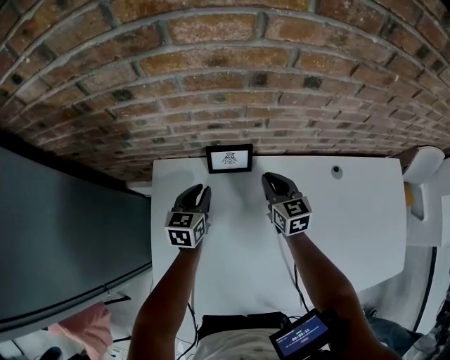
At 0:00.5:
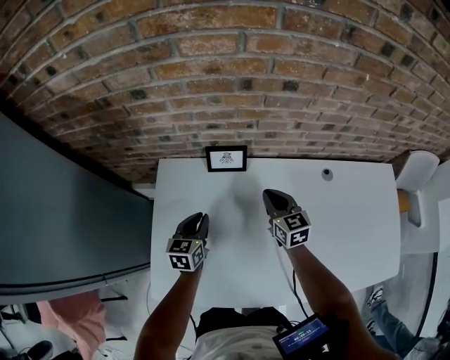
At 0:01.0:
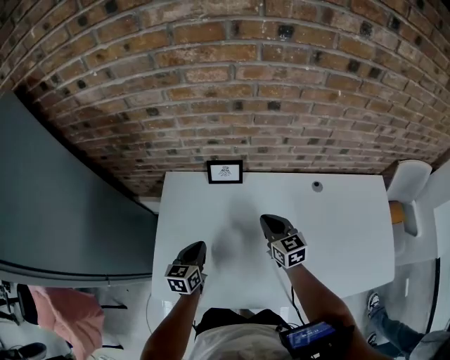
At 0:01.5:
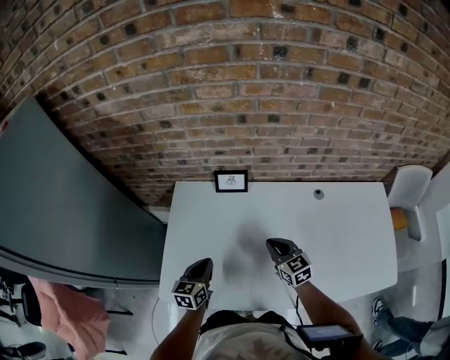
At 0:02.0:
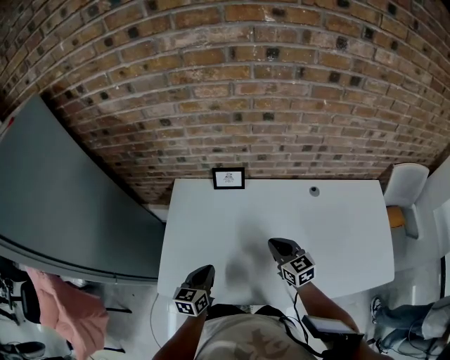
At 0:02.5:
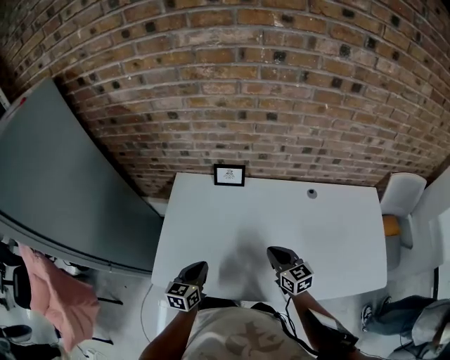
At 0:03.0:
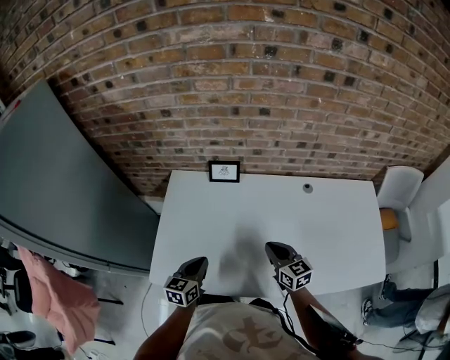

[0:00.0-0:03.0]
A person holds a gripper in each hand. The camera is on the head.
0:00.0 to 0:01.5: Both grippers move backward, roughly 25 cm.
0:01.5 to 0:03.0: The two grippers go roughly 5 cm backward.

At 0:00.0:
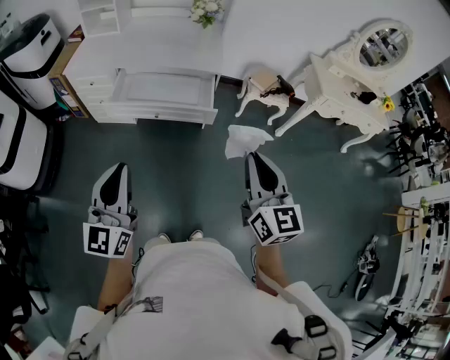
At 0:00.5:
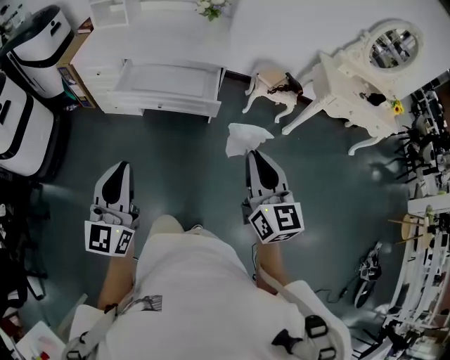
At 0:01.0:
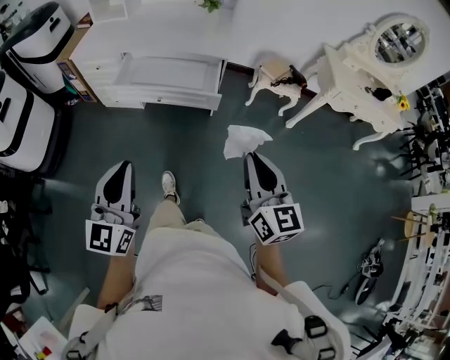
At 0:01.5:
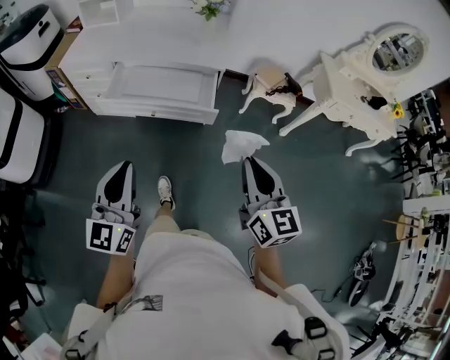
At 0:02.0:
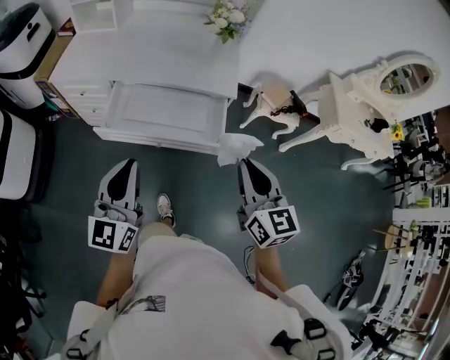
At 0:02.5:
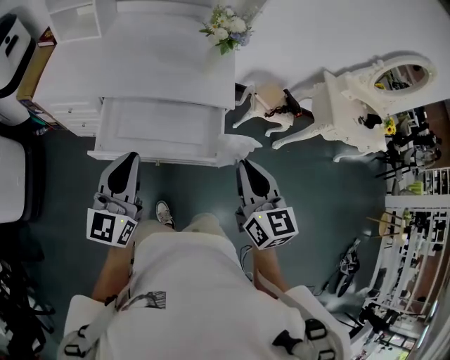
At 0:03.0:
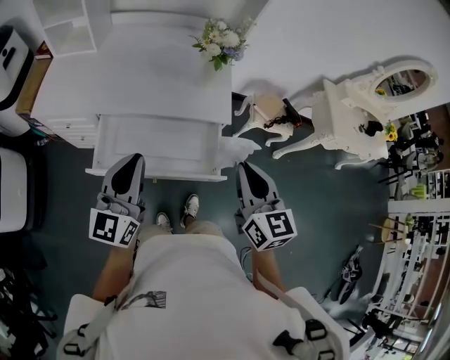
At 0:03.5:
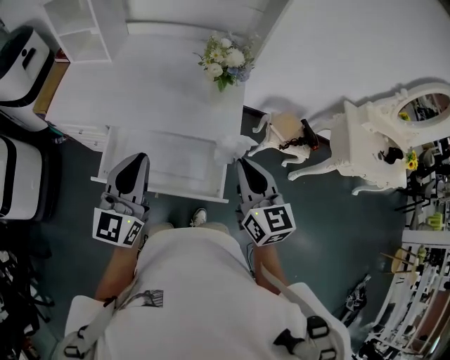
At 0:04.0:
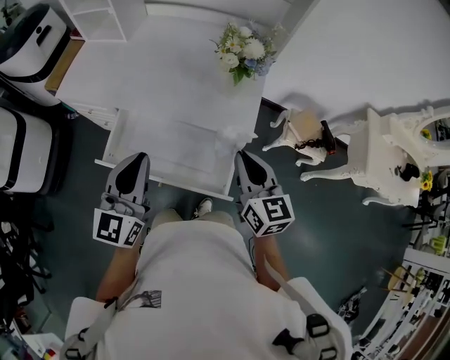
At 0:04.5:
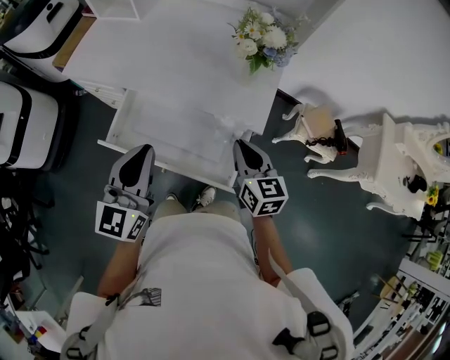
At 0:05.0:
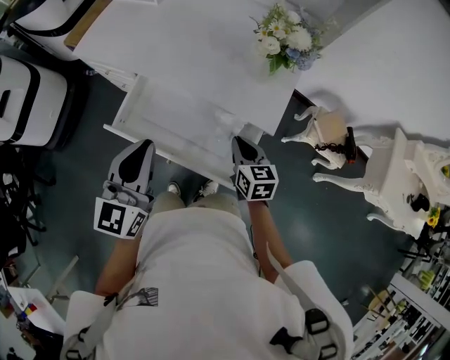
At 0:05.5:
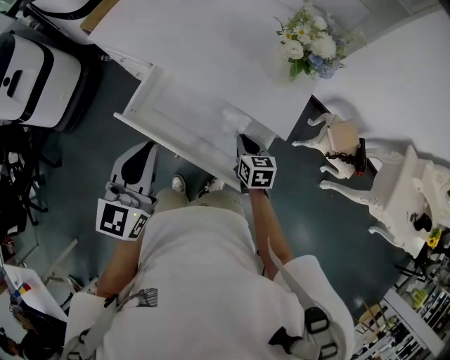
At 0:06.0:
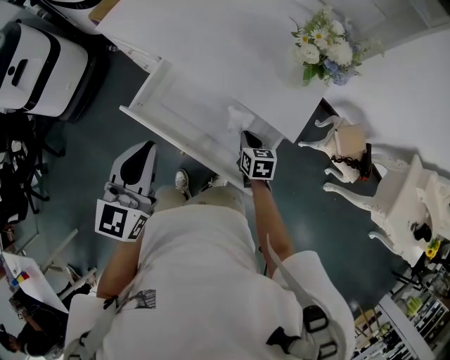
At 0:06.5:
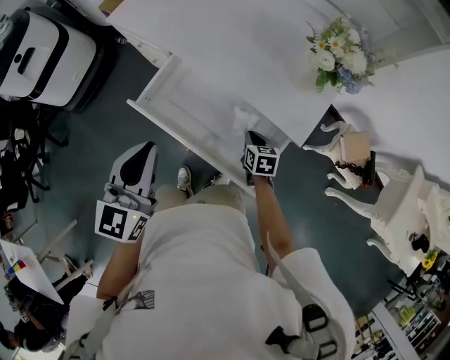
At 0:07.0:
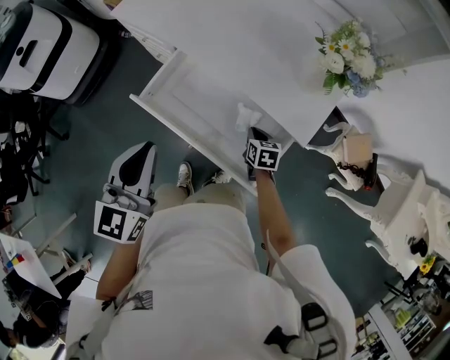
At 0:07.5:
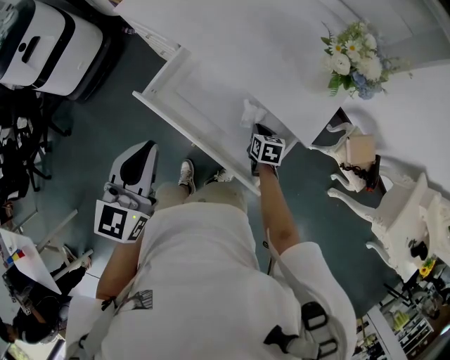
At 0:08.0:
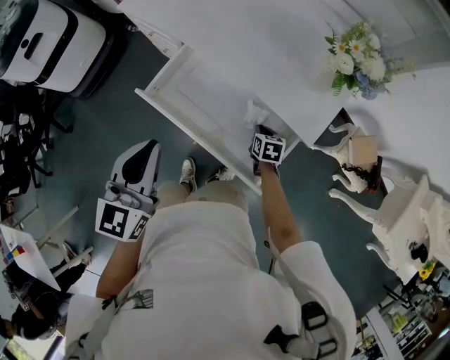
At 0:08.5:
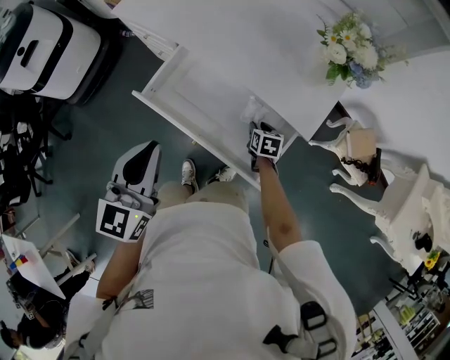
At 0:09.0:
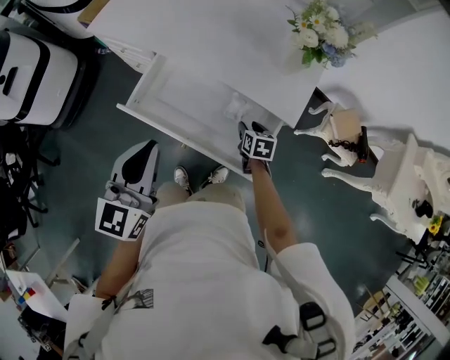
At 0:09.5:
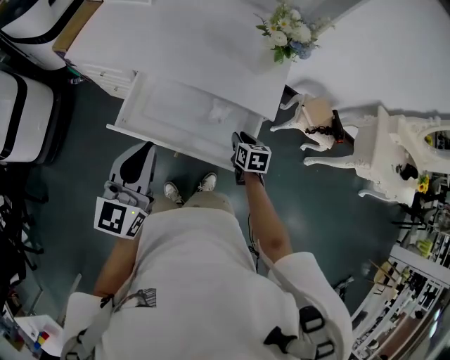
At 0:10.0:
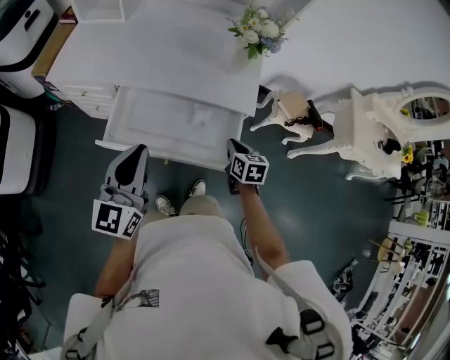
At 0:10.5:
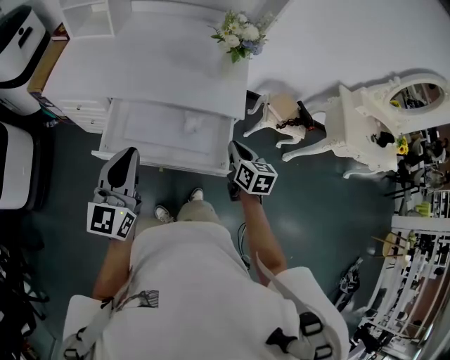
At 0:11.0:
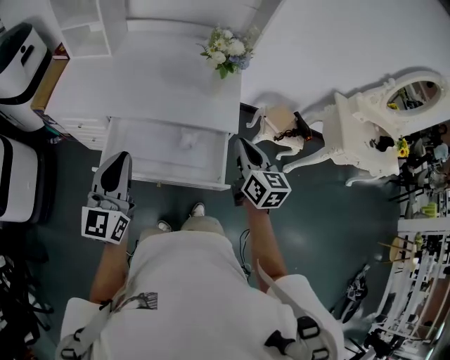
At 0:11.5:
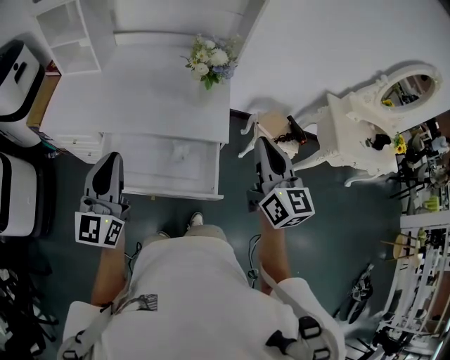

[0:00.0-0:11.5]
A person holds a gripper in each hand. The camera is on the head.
0:00.0 to 0:02.0: Both grippers travel together forward, approximately 25 cm.
0:02.0 to 0:04.0: The two grippers go some 25 cm forward.
0:04.0 to 0:06.0: The left gripper changes place by approximately 5 cm. The right gripper moves downward, roughly 30 cm, and tilts its fingers roughly 30 degrees downward.
0:06.0 to 0:07.5: The right gripper moves downward, roughly 5 cm.
0:07.5 to 0:09.5: The right gripper is displaced upward and backward by approximately 10 cm, and opens up. The left gripper rotates about 20 degrees.
0:09.5 to 0:11.5: The right gripper travels upward by approximately 40 cm, tips its fingers upward by approximately 50 degrees, and closes; the left gripper goes about 10 cm upward.

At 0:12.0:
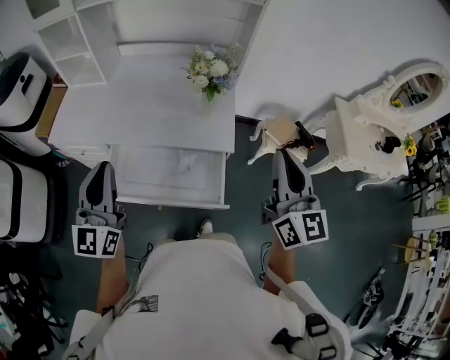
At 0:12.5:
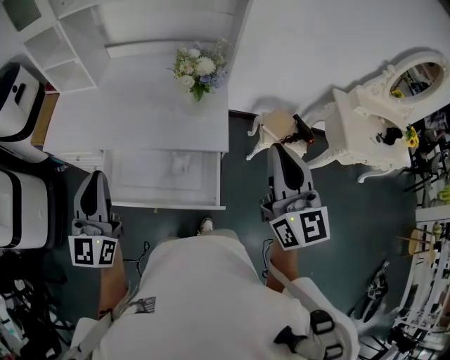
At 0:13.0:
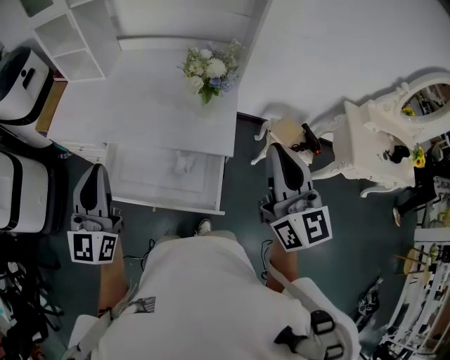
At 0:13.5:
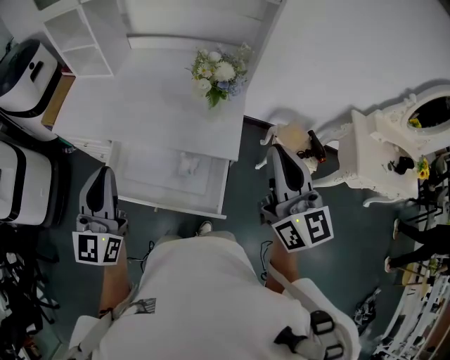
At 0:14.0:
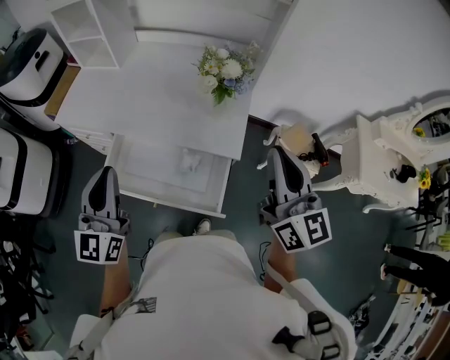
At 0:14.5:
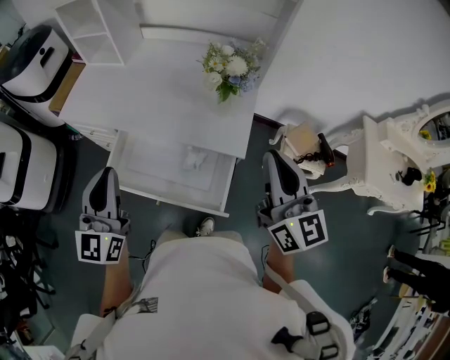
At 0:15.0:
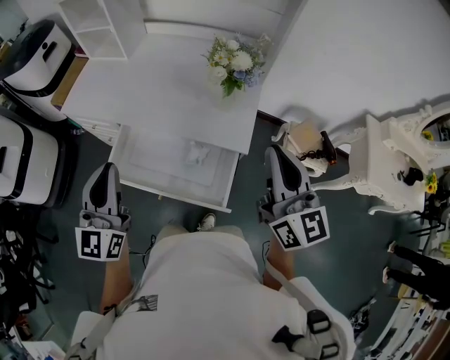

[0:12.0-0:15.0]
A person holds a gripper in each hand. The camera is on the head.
0:12.0 to 0:13.5: The right gripper heads forward, covering approximately 5 cm.
0:13.5 to 0:15.0: The grippers move only a little.

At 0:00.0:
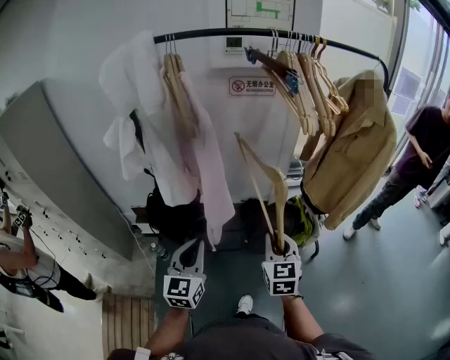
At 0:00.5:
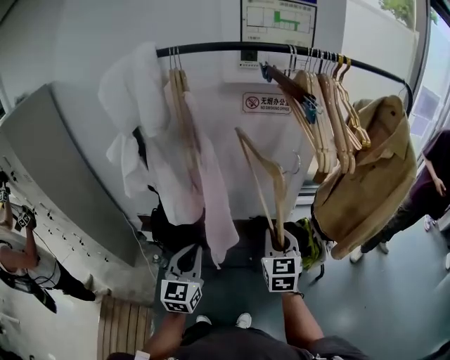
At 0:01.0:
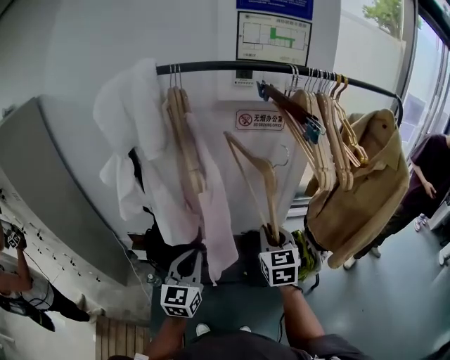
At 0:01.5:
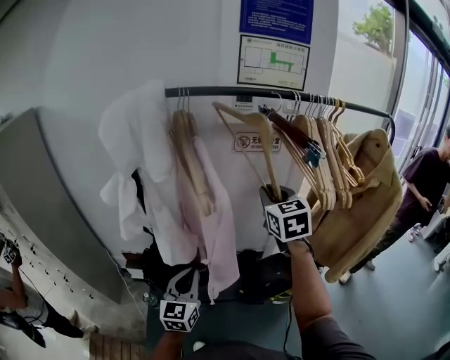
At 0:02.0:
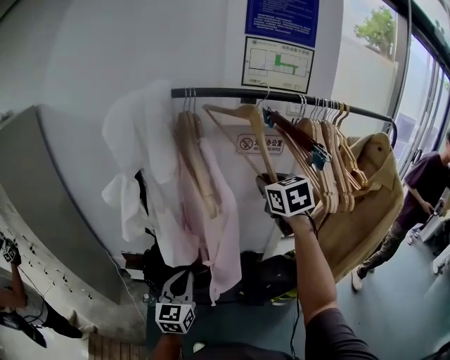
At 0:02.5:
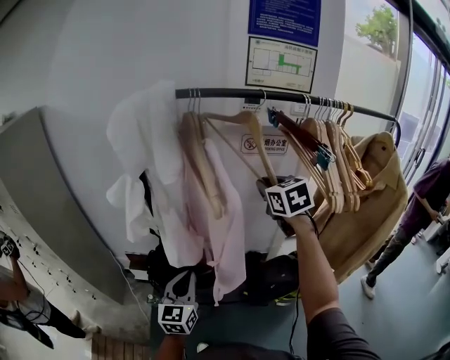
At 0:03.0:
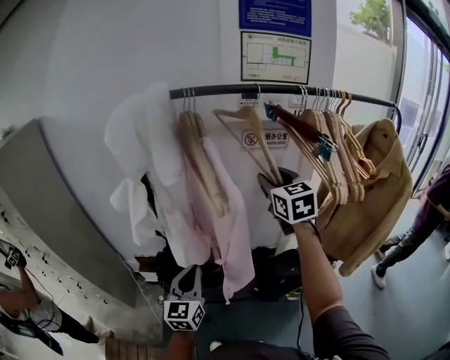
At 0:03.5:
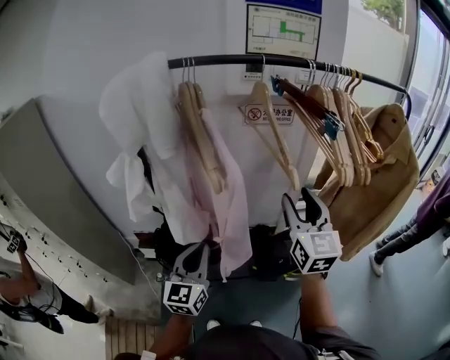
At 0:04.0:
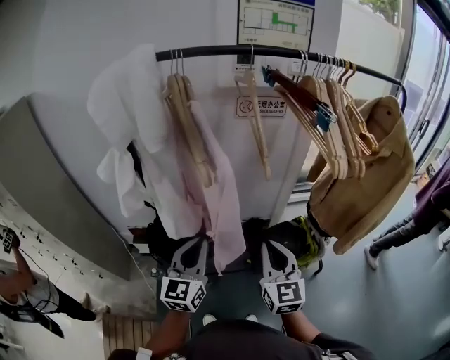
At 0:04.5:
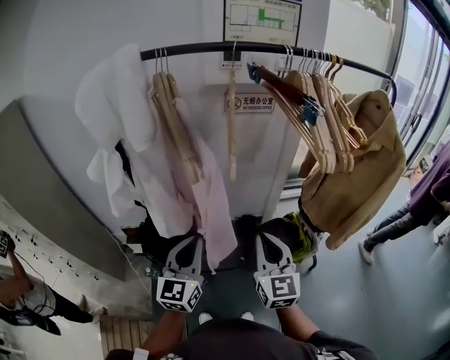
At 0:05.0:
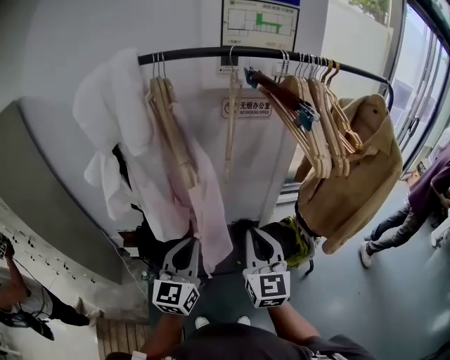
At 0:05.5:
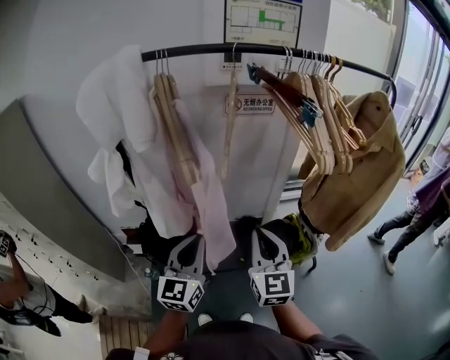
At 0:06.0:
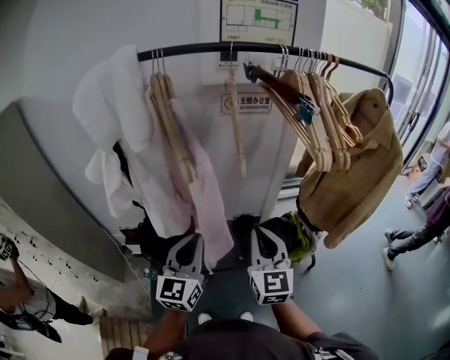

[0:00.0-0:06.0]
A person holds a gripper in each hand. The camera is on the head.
0:00.0 to 0:02.0: The right gripper shifts roughly 40 cm forward and upward; the left gripper travels forward and to the left by approximately 15 cm.
0:02.0 to 0:04.0: The right gripper goes approximately 25 cm backward and downward, changes its angle by some 20 degrees, and opens, then closes once more; the left gripper changes place by roughly 5 cm.
0:04.0 to 0:06.0: The grippers make only small movements.

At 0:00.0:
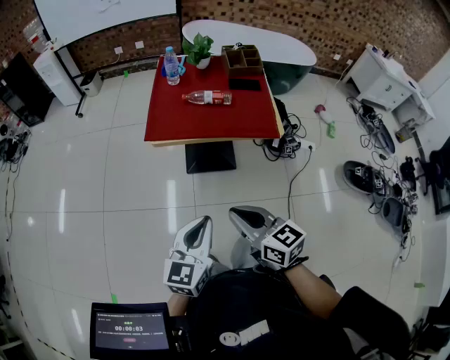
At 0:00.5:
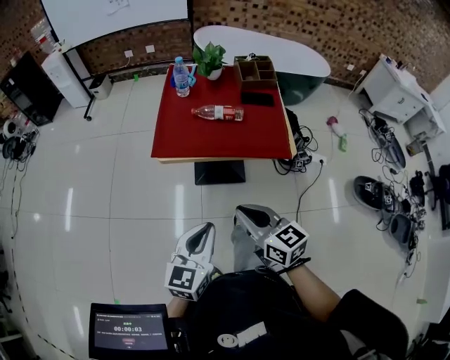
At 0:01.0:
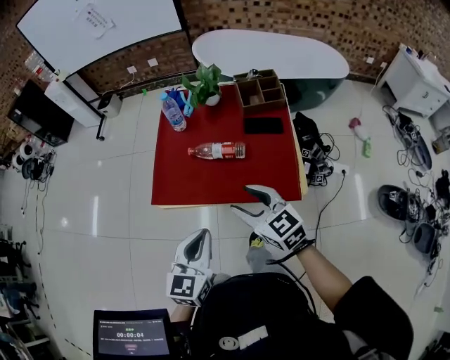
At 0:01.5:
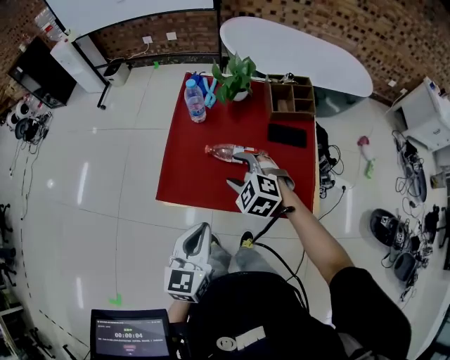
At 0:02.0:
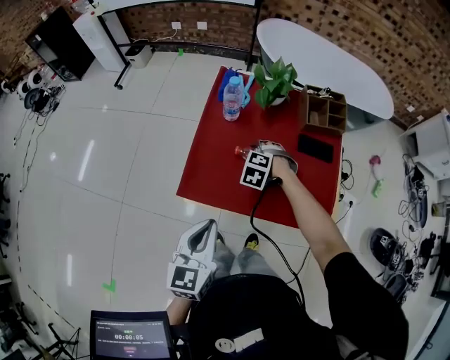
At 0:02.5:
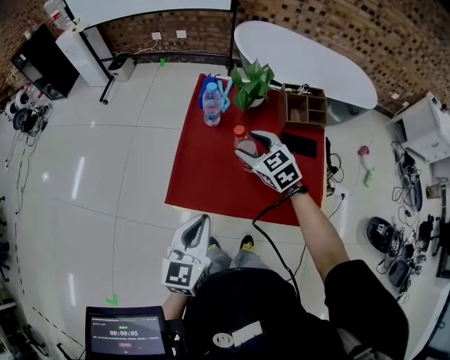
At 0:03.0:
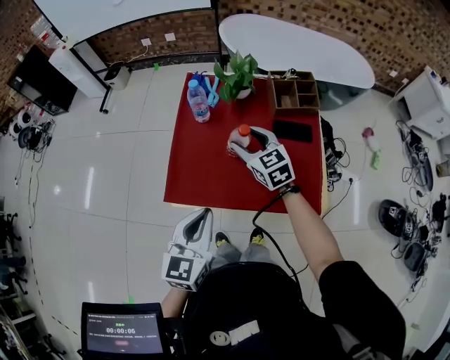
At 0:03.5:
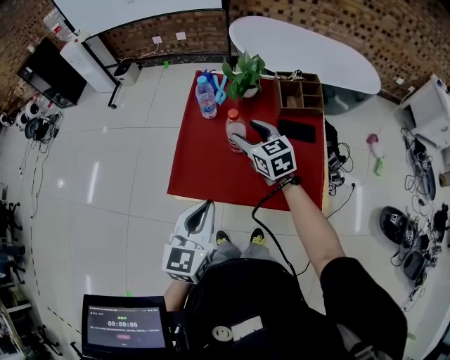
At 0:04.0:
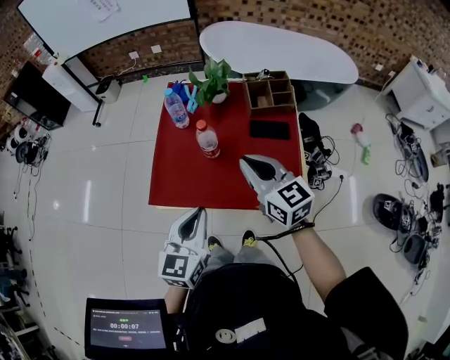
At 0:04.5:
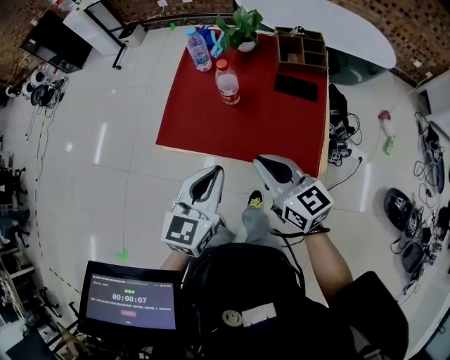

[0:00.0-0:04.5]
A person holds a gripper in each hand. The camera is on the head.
0:00.0 to 0:02.0: The left gripper shifts approximately 35 cm forward. Meanwhile the right gripper moves forward and downward, roughly 60 cm, angles its fingers downward, by about 50 degrees, and opens.
0:02.0 to 0:04.5: The left gripper heads to the right, covering roughly 15 cm. The right gripper is displaced backward, upward and to the right by approximately 35 cm, tips its fingers upward by about 60 degrees, and closes.
